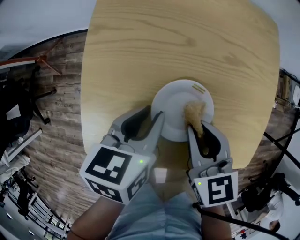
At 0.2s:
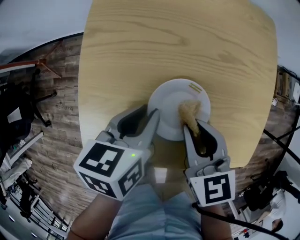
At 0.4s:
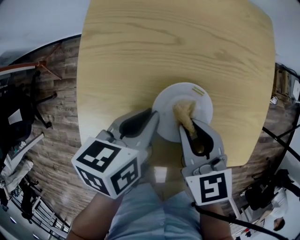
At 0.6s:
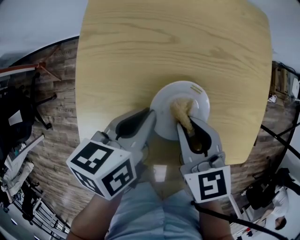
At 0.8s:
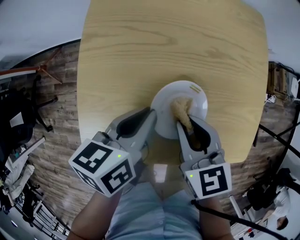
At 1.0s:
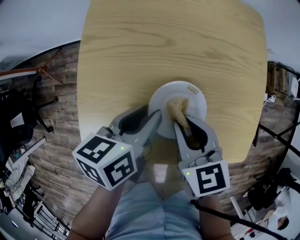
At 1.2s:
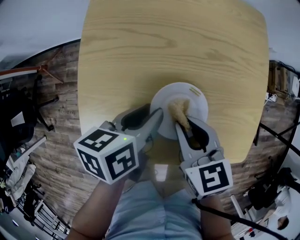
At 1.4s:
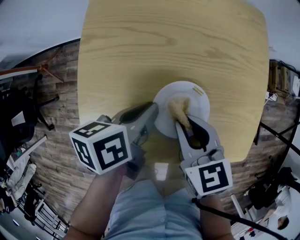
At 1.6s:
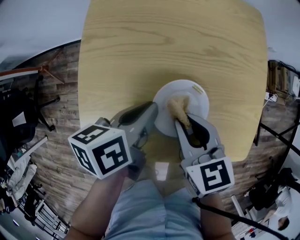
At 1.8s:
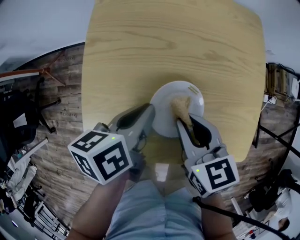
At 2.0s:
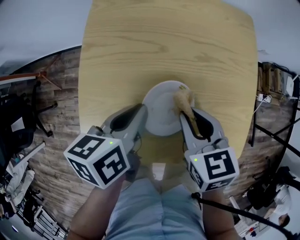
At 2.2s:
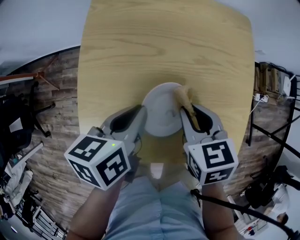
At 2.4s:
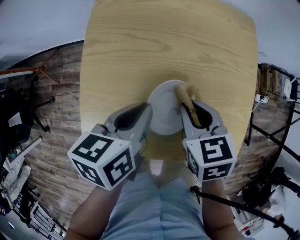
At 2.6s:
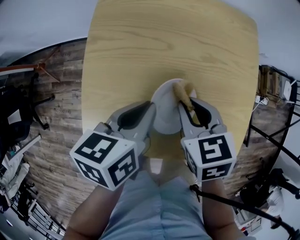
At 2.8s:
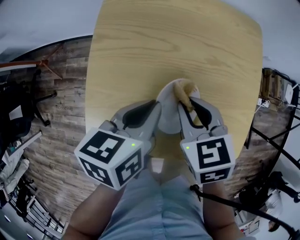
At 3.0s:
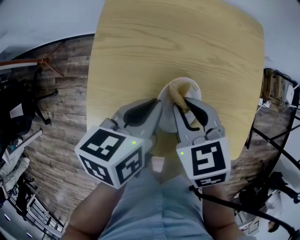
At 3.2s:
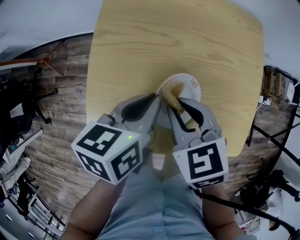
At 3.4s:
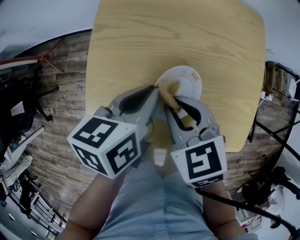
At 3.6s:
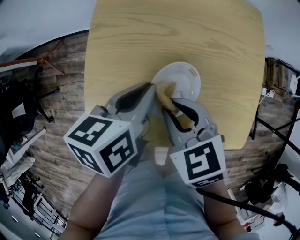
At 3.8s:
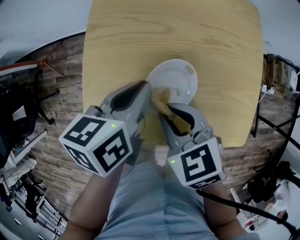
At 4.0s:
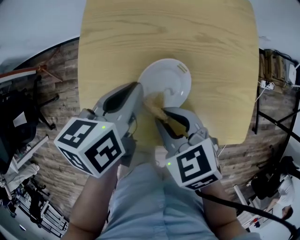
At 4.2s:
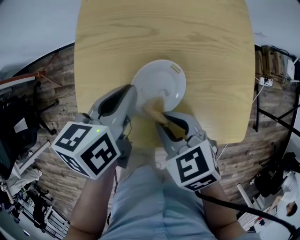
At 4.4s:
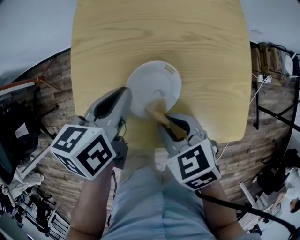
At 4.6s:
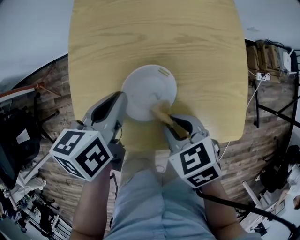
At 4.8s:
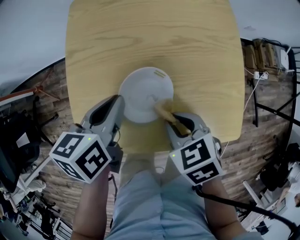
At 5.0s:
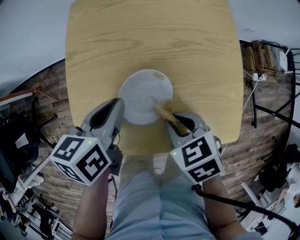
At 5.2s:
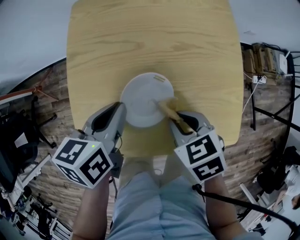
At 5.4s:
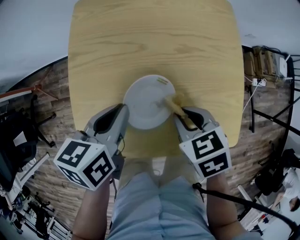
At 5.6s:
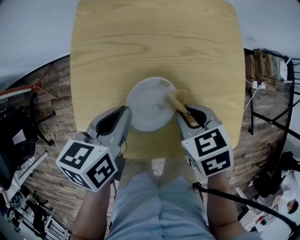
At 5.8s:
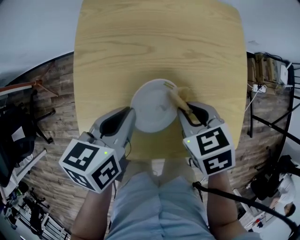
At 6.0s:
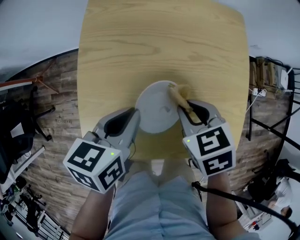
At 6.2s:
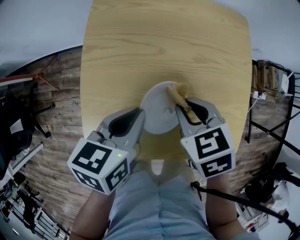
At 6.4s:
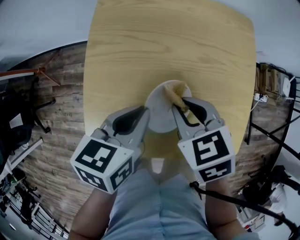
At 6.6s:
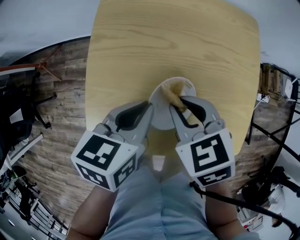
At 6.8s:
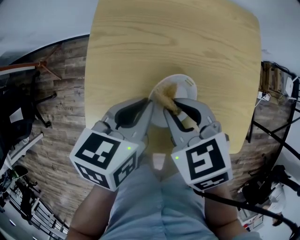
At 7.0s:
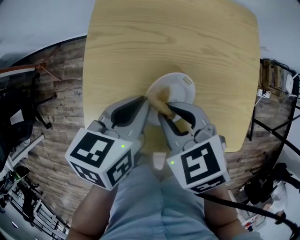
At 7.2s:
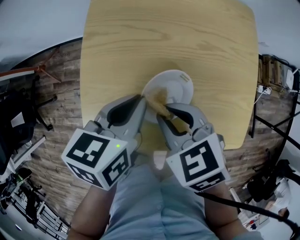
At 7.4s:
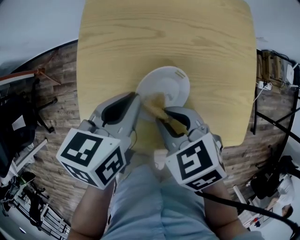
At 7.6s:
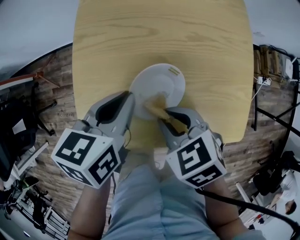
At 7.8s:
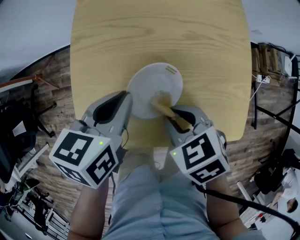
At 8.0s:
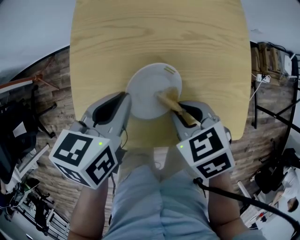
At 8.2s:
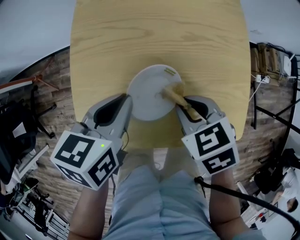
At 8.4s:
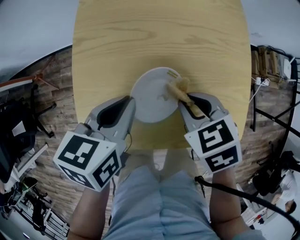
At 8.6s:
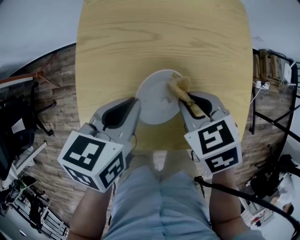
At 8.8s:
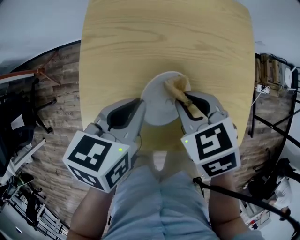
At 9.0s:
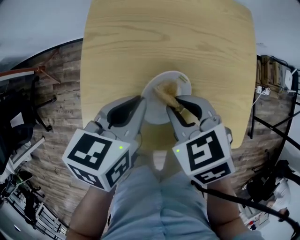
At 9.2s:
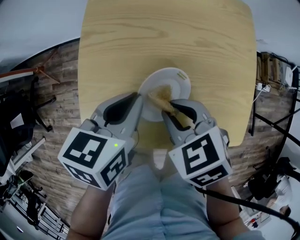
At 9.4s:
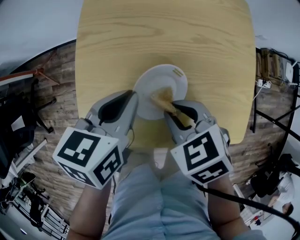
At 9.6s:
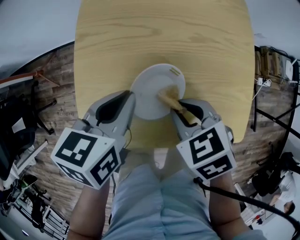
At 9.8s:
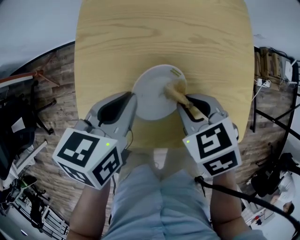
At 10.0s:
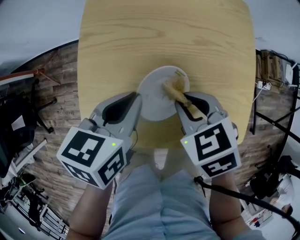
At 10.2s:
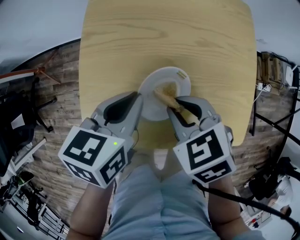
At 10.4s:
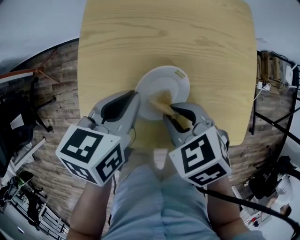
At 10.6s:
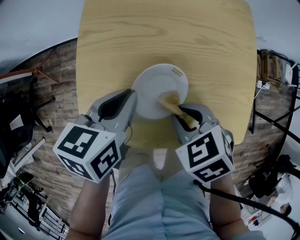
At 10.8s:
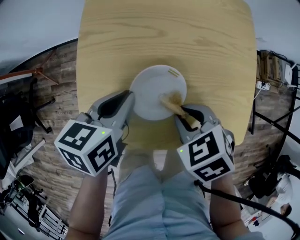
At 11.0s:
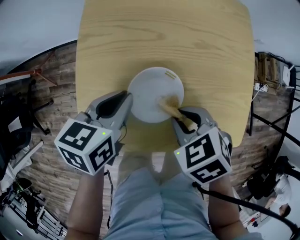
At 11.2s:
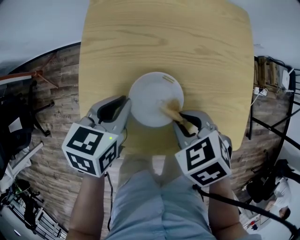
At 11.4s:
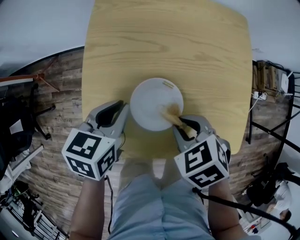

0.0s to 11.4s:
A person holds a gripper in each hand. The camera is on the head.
0.0s to 1.4s: The left gripper turns by approximately 20 degrees.
1.4s to 2.8s: The right gripper heads forward, covering roughly 5 cm; the left gripper moves upward, approximately 5 cm.
2.8s to 4.2s: The right gripper travels backward by roughly 10 cm.
4.2s to 5.6s: The right gripper moves to the right and forward, roughly 10 cm.
5.6s to 7.2s: The right gripper travels to the left by roughly 10 cm.
7.2s to 8.6s: The right gripper travels to the right by roughly 10 cm.
10.0s to 11.4s: The left gripper changes place by some 5 cm.

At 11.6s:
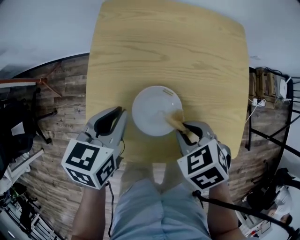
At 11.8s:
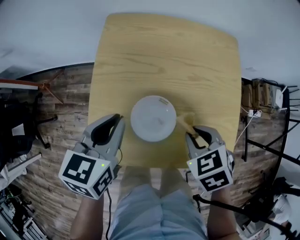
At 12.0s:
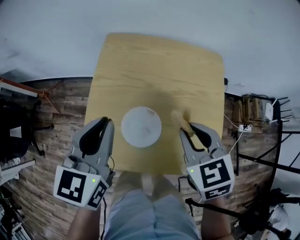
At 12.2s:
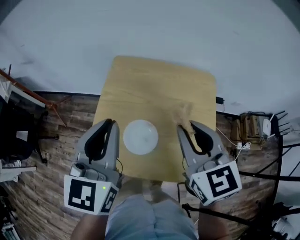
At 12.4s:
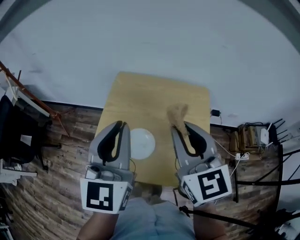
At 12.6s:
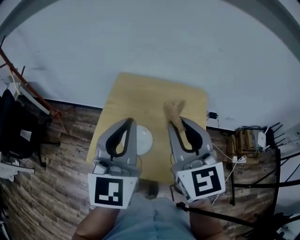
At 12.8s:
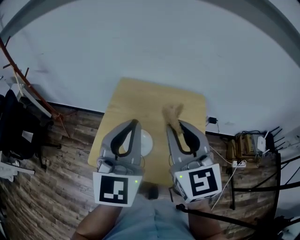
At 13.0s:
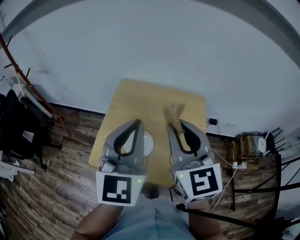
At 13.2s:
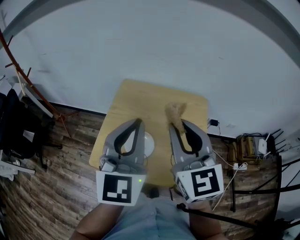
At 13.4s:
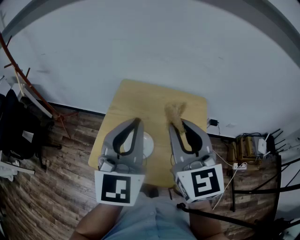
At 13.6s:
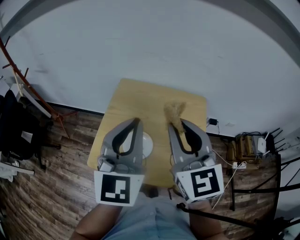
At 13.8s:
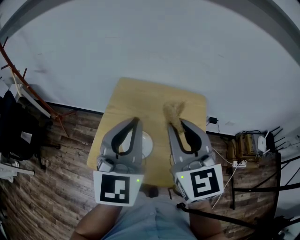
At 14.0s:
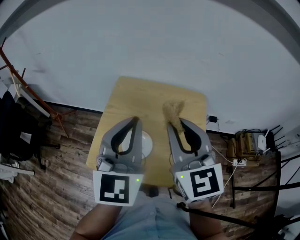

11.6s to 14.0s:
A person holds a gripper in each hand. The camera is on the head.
11.6s to 12.8s: The grippers both shift upward by approximately 30 cm. The left gripper tips its fingers upward by roughly 40 degrees. Meanwhile the right gripper tilts its fingers roughly 60 degrees upward.
12.8s to 14.0s: The grippers make only small movements.

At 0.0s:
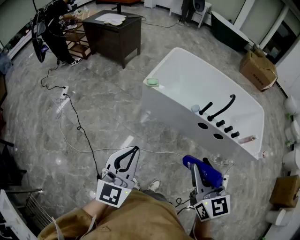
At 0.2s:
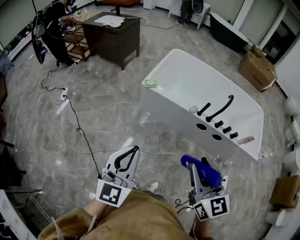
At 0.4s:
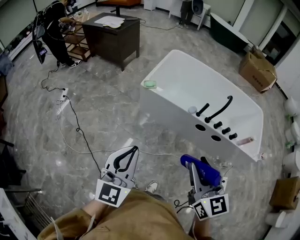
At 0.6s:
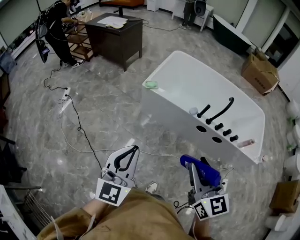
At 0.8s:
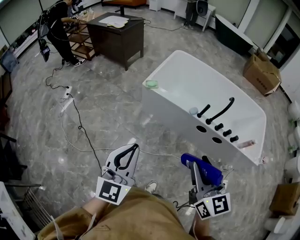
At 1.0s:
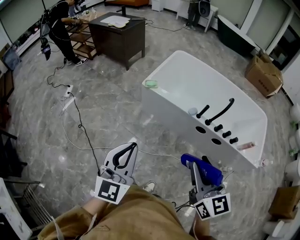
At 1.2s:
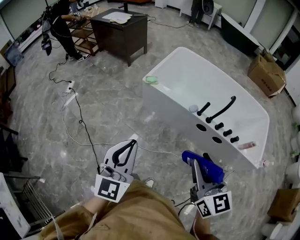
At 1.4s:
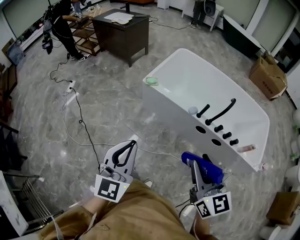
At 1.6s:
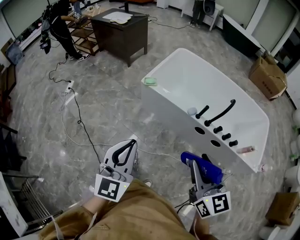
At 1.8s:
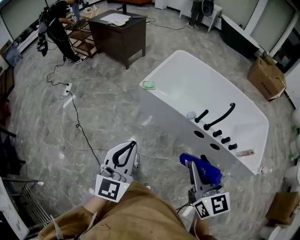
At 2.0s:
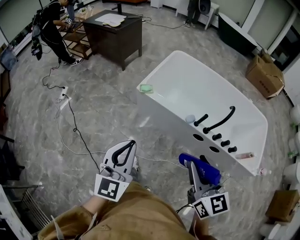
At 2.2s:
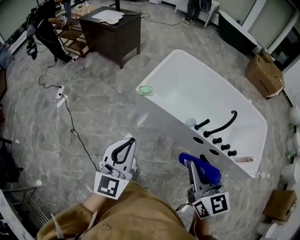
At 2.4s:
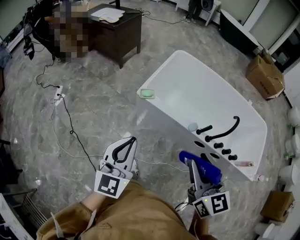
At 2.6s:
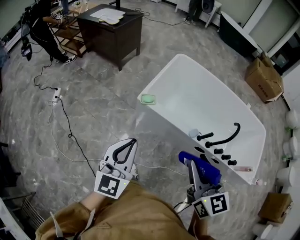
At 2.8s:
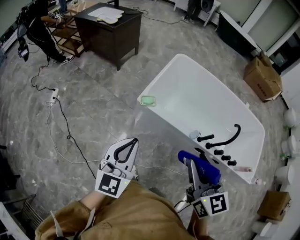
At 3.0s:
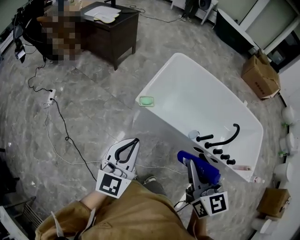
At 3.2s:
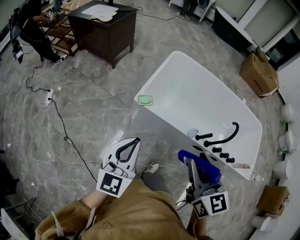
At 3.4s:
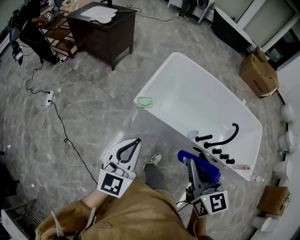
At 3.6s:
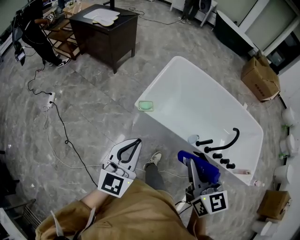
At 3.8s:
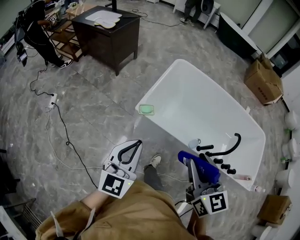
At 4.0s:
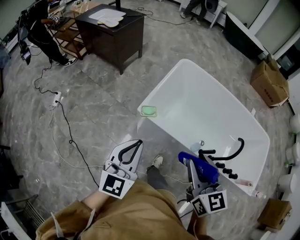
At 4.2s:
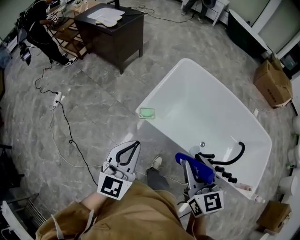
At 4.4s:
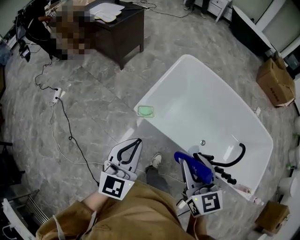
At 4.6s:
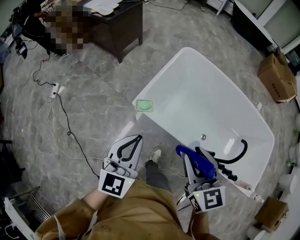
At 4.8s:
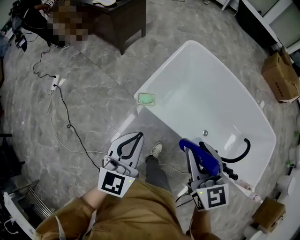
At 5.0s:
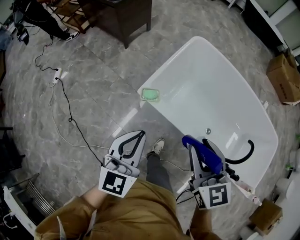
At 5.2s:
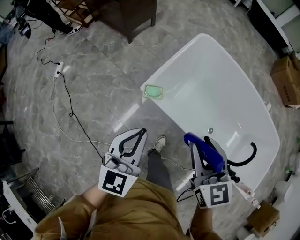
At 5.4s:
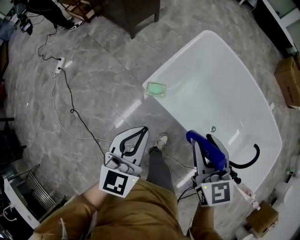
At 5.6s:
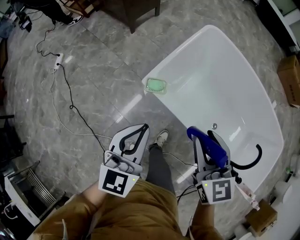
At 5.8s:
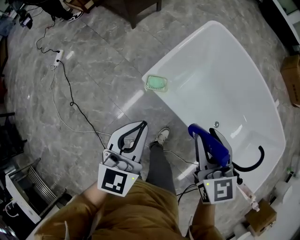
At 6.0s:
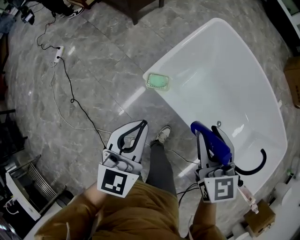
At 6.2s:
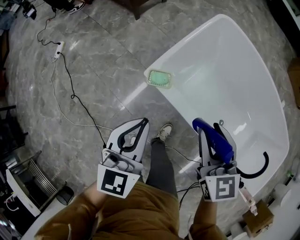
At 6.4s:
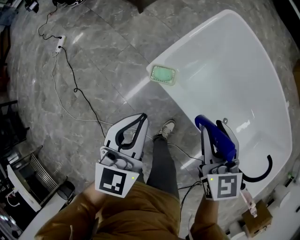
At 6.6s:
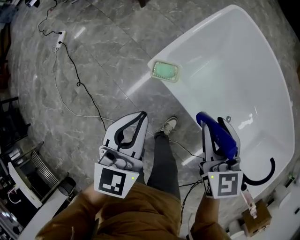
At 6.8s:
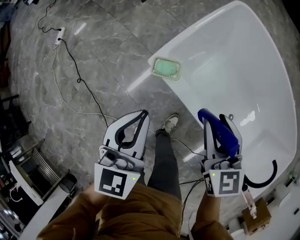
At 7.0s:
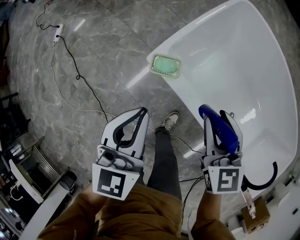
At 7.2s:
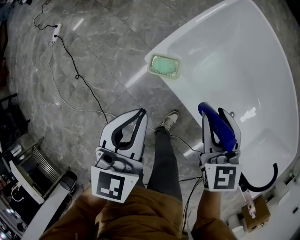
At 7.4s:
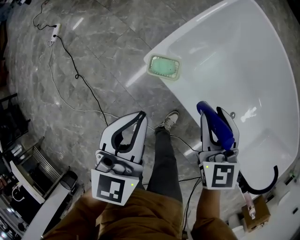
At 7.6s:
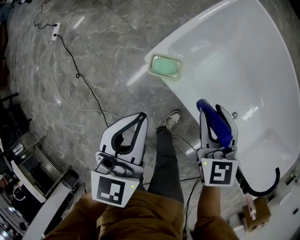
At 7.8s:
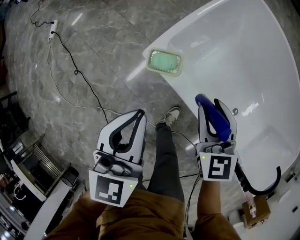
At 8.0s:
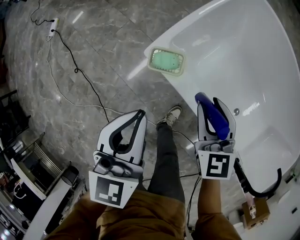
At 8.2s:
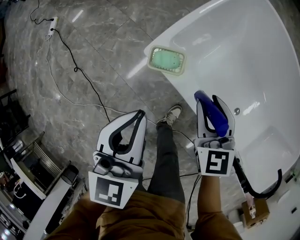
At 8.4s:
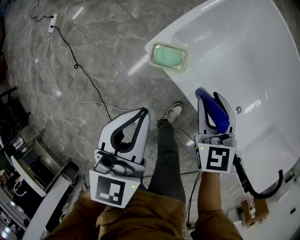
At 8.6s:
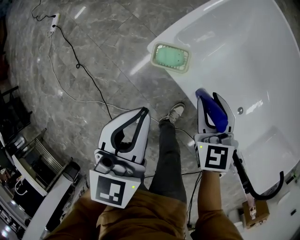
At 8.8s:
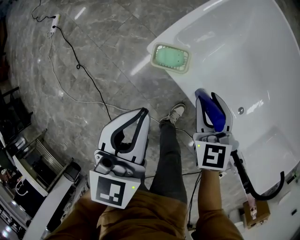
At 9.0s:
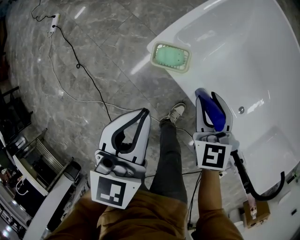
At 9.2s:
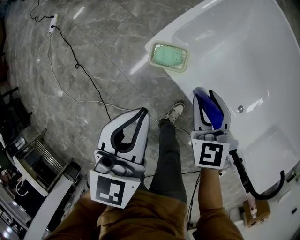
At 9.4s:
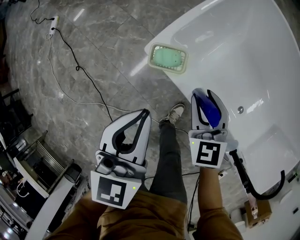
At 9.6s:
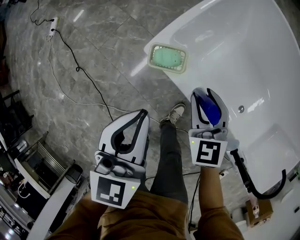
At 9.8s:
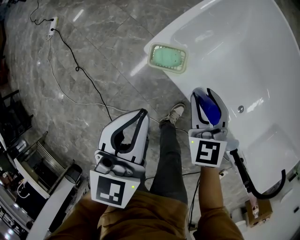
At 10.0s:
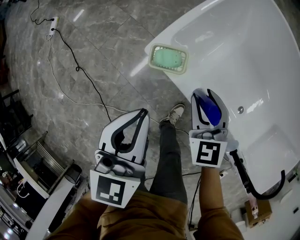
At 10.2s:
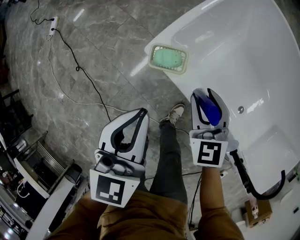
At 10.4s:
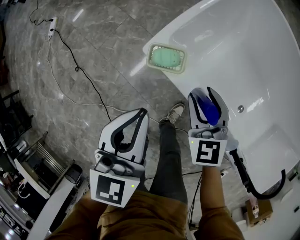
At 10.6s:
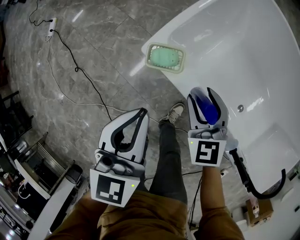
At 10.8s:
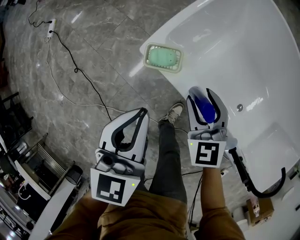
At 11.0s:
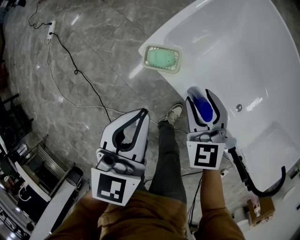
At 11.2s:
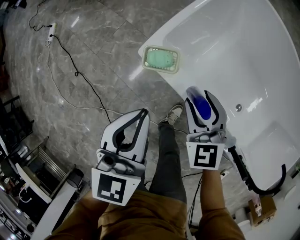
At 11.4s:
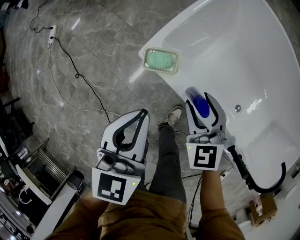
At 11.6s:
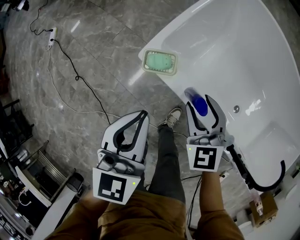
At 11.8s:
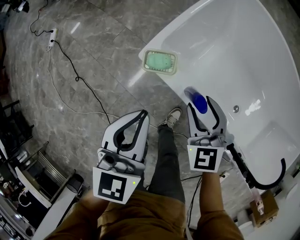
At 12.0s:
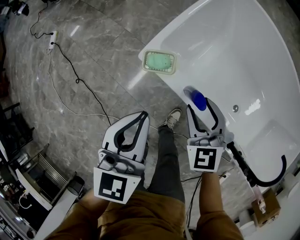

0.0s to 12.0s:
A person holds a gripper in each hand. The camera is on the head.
0.0s to 1.6s: Both grippers travel together to the right, approximately 10 cm.
1.6s to 3.0s: The right gripper travels forward and to the left by about 30 cm; the left gripper travels forward by roughly 30 cm.
3.0s to 4.4s: The right gripper is displaced forward and downward by approximately 15 cm; the left gripper shifts some 15 cm forward and to the right.
4.4s to 6.0s: Both grippers travel together downward and forward, some 15 cm.
6.0s to 7.6s: The right gripper goes approximately 20 cm downward and forward. Meanwhile the left gripper heads downward and forward, covering some 10 cm.
7.6s to 9.0s: The right gripper shifts about 10 cm downward.
9.0s to 10.4s: The grippers make only small movements.
10.4s to 12.0s: The right gripper changes place by some 5 cm.
